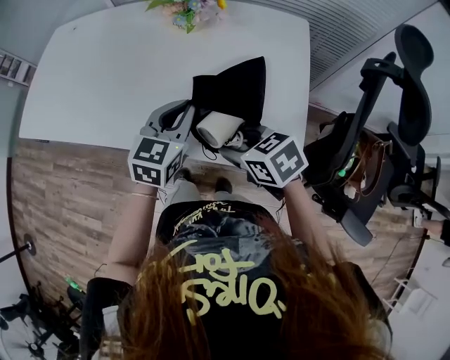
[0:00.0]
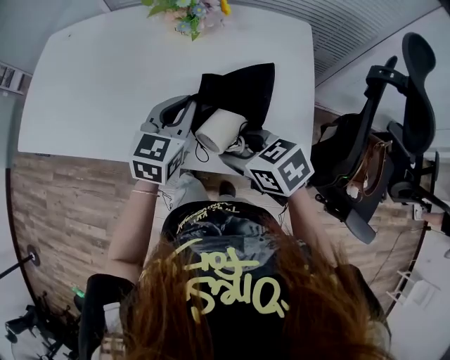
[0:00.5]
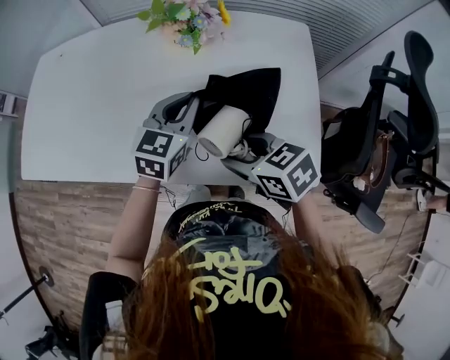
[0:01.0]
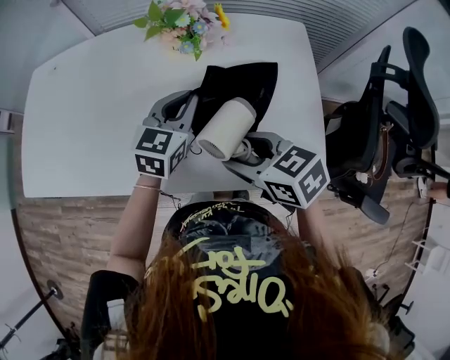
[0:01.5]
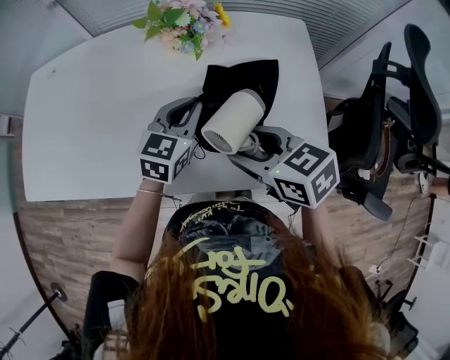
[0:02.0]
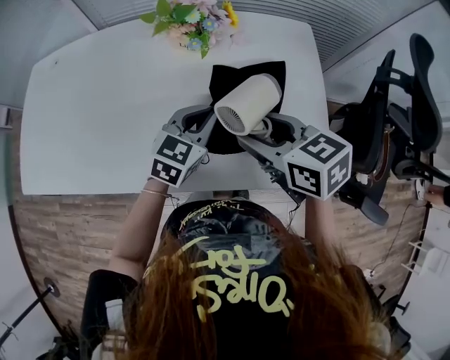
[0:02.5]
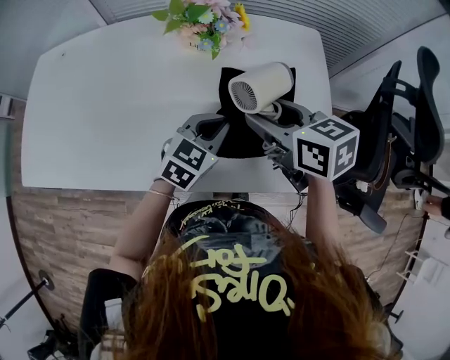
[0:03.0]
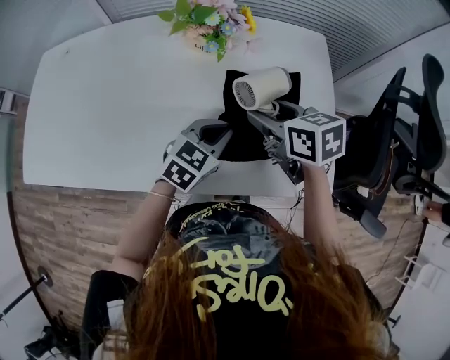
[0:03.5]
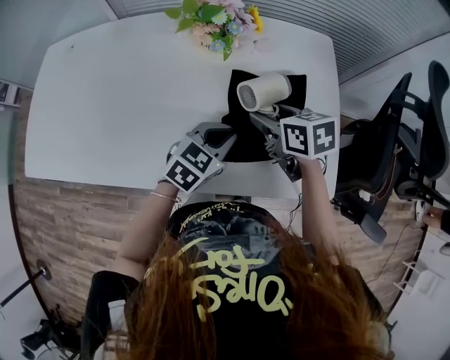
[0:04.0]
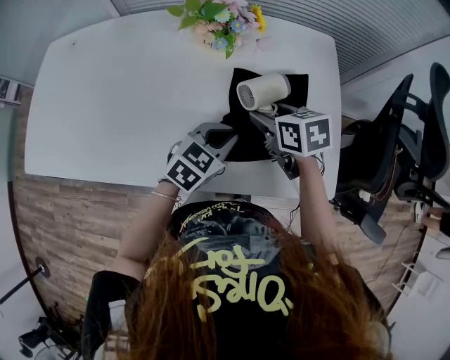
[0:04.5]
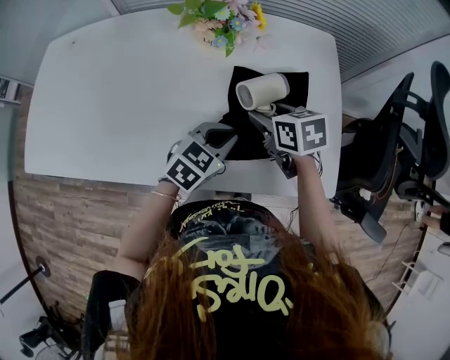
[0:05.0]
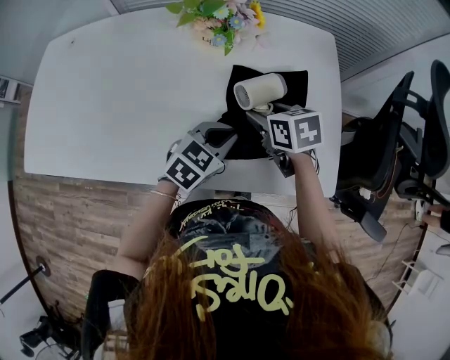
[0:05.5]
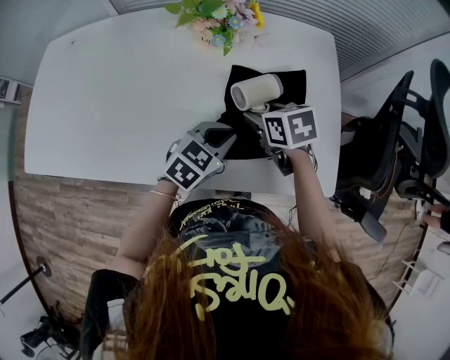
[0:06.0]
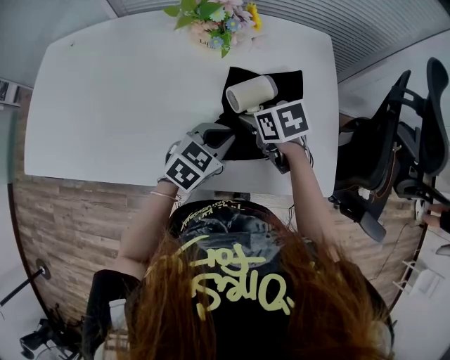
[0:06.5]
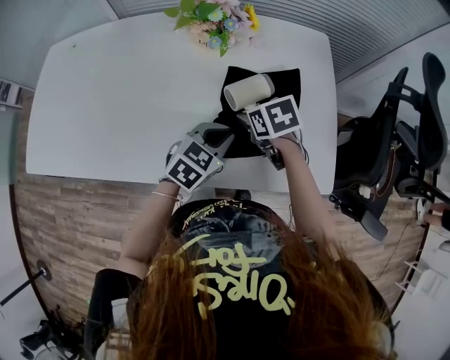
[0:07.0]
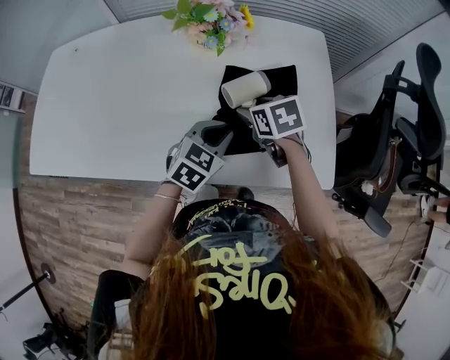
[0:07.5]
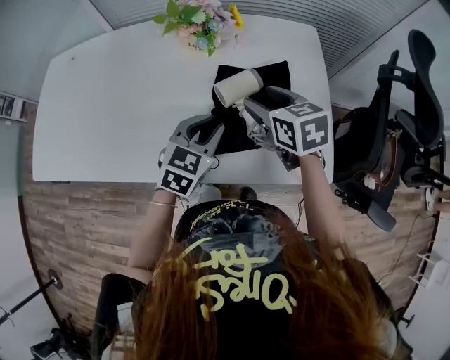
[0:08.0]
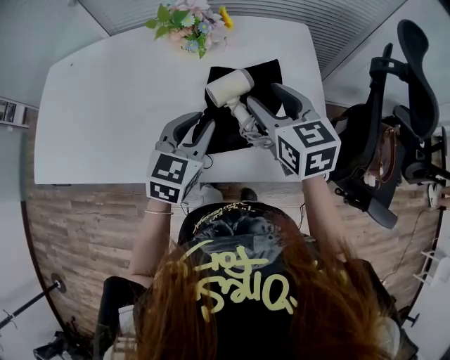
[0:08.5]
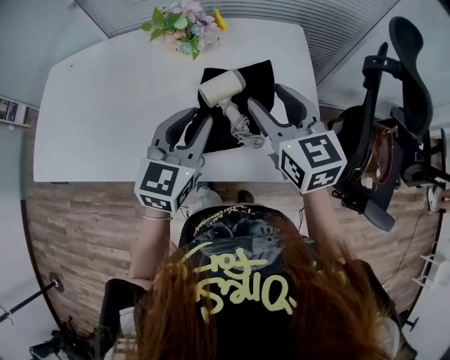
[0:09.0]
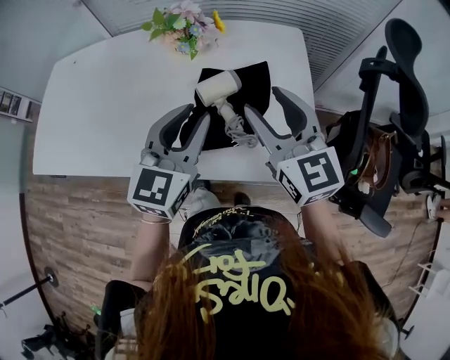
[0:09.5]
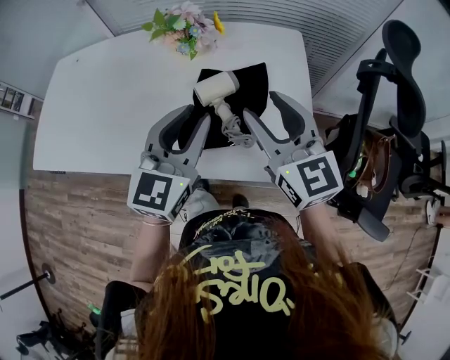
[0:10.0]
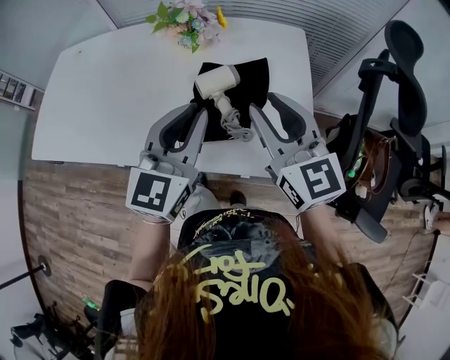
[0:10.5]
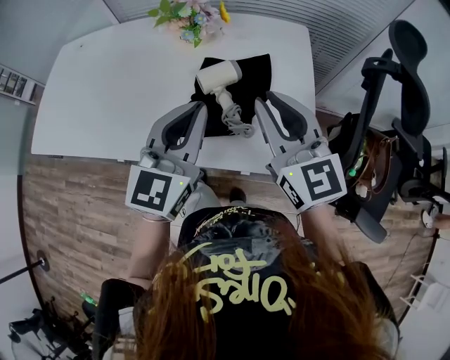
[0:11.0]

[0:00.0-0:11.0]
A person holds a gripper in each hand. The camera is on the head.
0:00.0 to 0:02.0: The left gripper heads forward, covering roughly 10 cm. Meanwhile the right gripper goes approximately 15 cm forward, upward and to the left.
0:02.0 to 0:03.5: The left gripper goes approximately 5 cm backward. Meanwhile the right gripper is displaced forward by about 10 cm.
0:03.5 to 0:05.5: The right gripper is displaced downward by approximately 5 cm.
0:05.5 to 0:07.5: The grippers stay close to where they were, moving slightly.
0:07.5 to 0:09.0: The left gripper shifts roughly 15 cm upward, and rotates roughly 30 degrees. The right gripper moves upward and to the right, roughly 20 cm, and tips its fingers upward by approximately 40 degrees.
0:09.0 to 0:11.0: The left gripper shifts approximately 5 cm upward and backward, and closes up; the right gripper moves backward, approximately 5 cm, and closes up.

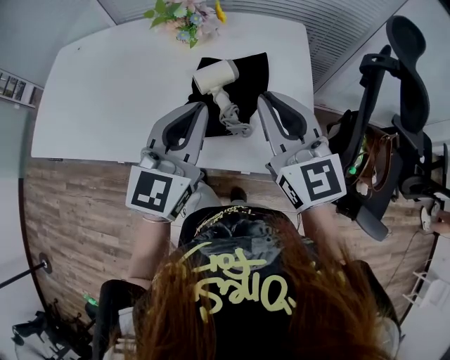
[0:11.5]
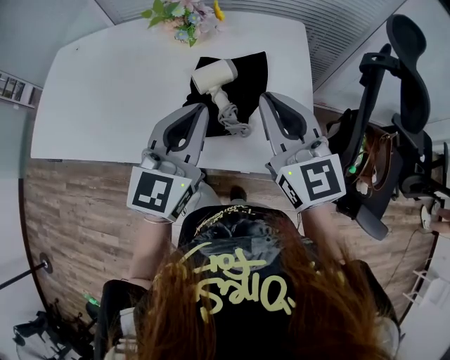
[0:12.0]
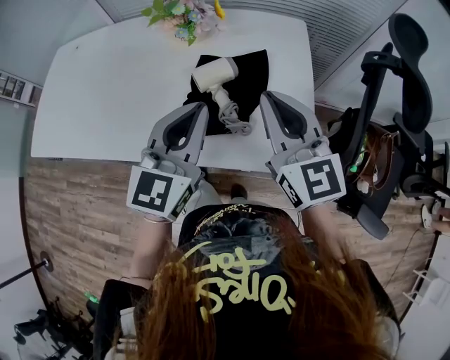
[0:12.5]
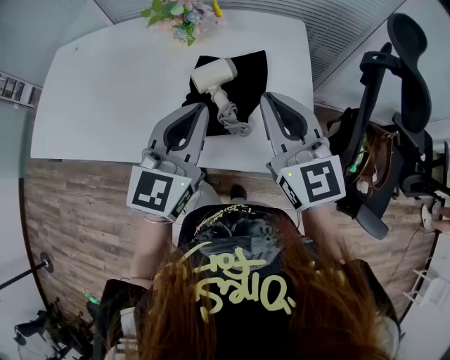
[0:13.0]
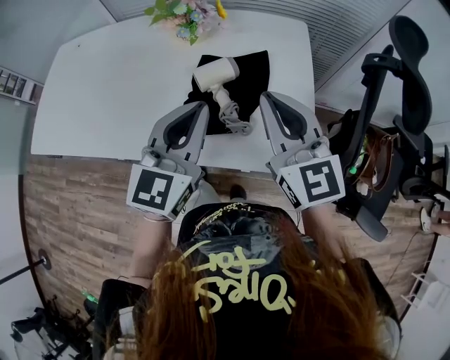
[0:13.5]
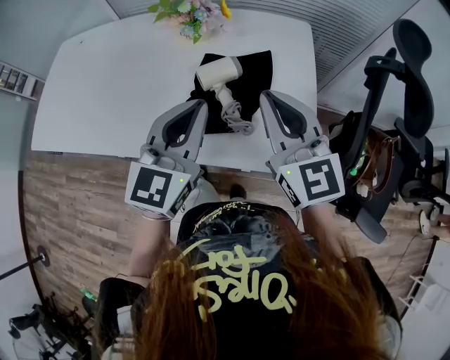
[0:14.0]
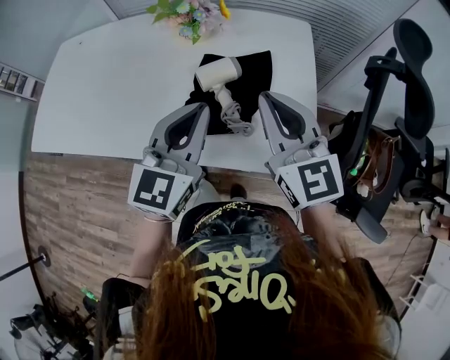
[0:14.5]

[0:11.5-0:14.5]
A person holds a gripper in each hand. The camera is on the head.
0:11.5 to 0:14.5: Both grippers stay put.

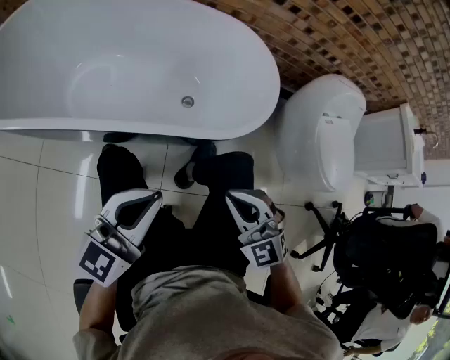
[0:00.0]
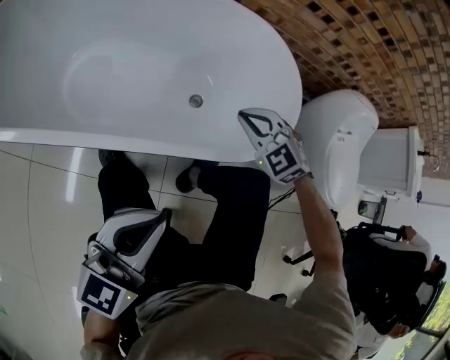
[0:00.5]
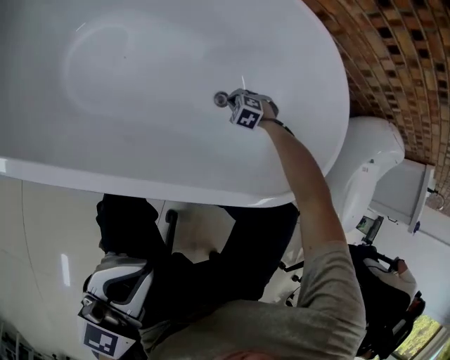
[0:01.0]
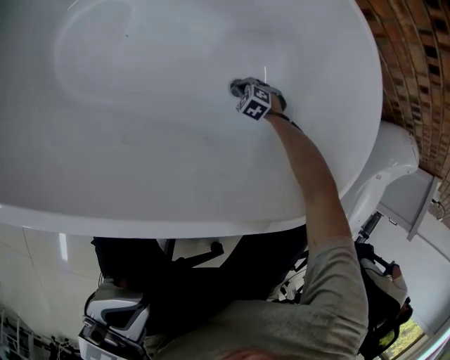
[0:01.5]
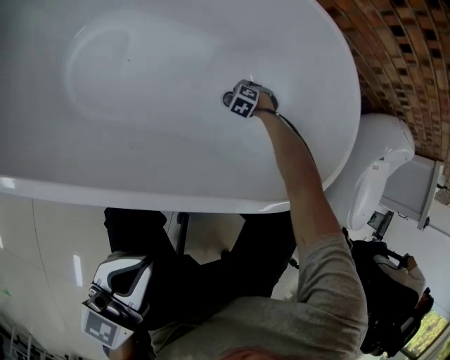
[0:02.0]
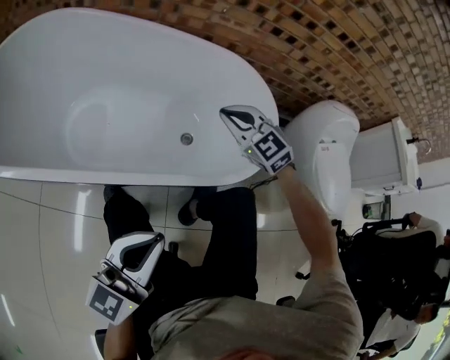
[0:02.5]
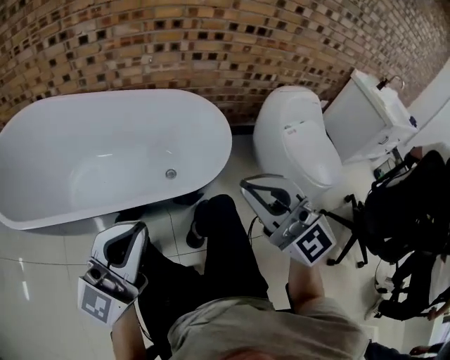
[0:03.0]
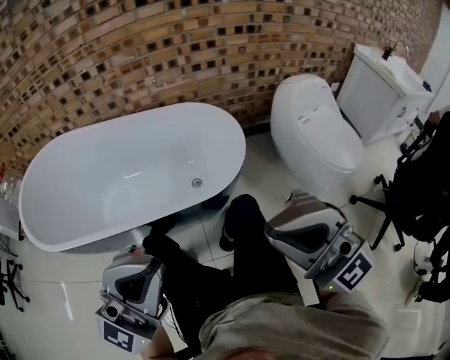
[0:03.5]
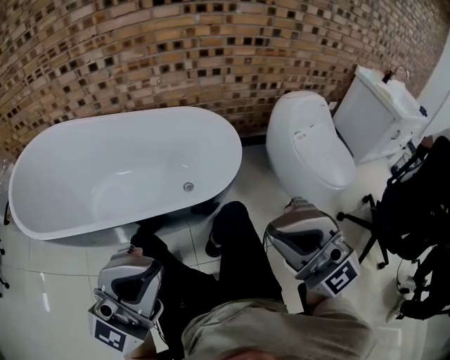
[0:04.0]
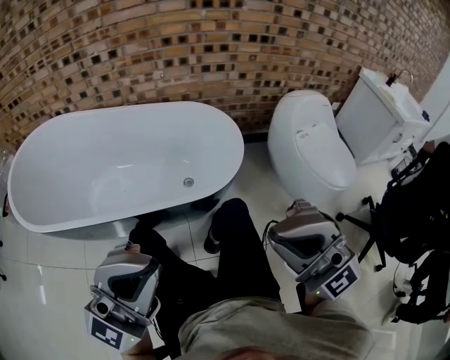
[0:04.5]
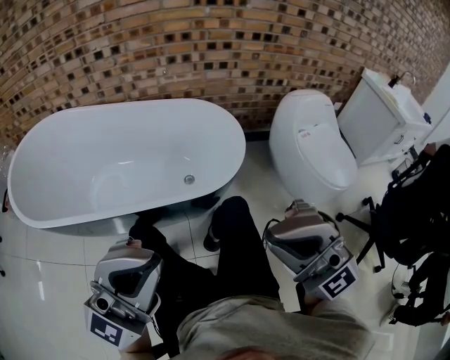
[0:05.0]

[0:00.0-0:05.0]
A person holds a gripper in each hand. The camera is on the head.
0:00.0 to 0:02.5: The right gripper reaches about 50 cm downward, then returns. The left gripper travels downward and back again, roughly 10 cm each way.
0:02.5 to 0:05.0: The right gripper travels backward and upward by roughly 50 cm, and points its fingers about 50 degrees further upward. The left gripper shifts about 30 cm upward and backward, and swivels roughly 40 degrees.

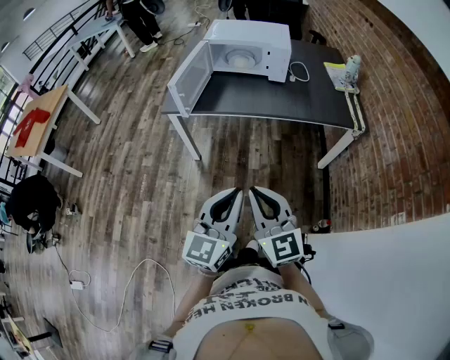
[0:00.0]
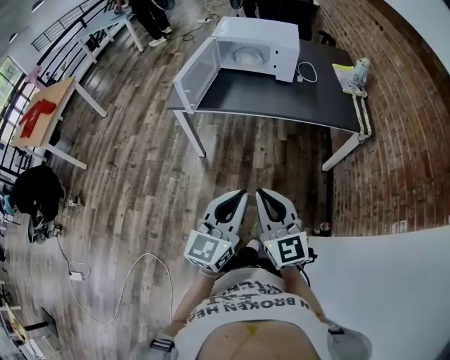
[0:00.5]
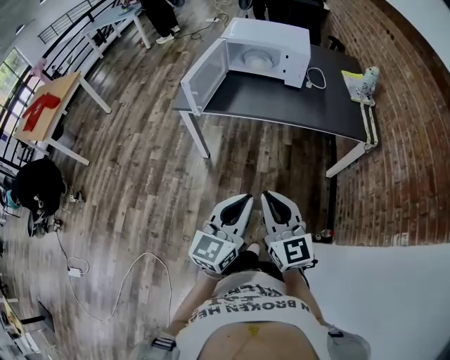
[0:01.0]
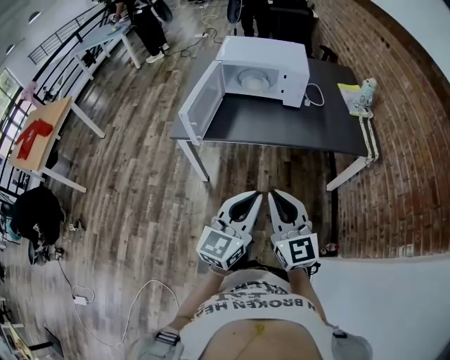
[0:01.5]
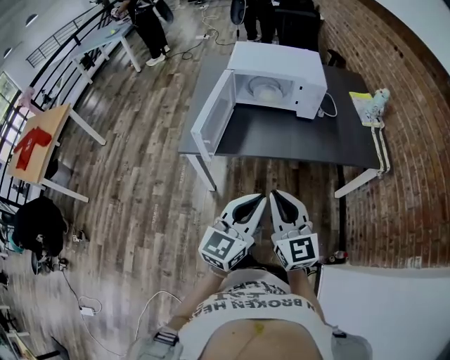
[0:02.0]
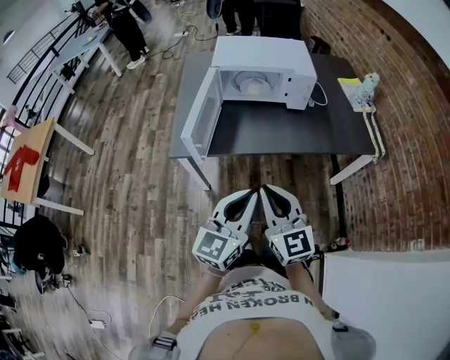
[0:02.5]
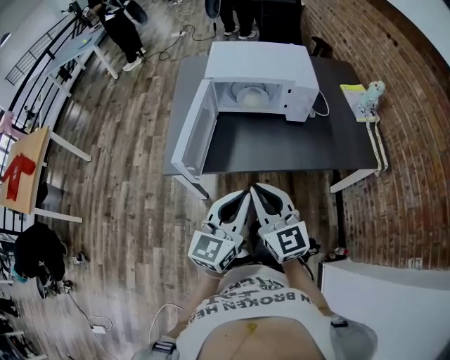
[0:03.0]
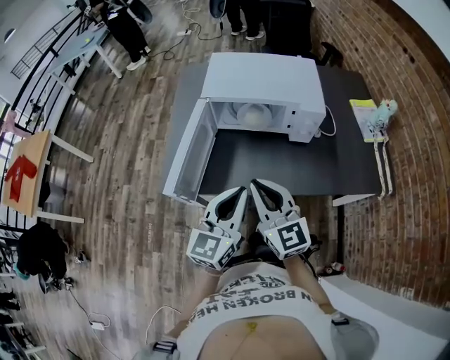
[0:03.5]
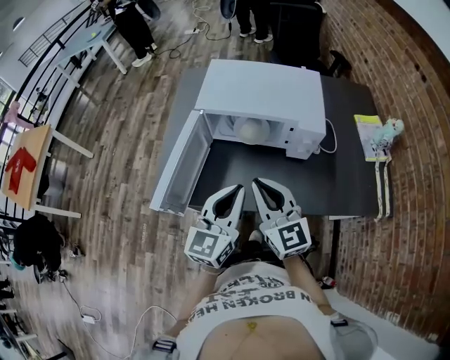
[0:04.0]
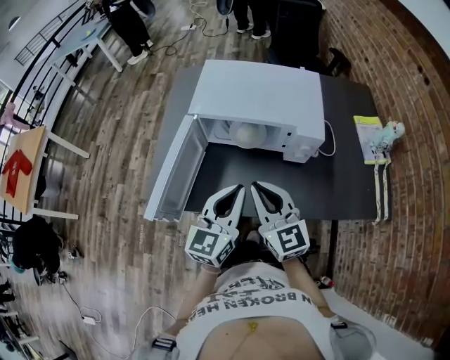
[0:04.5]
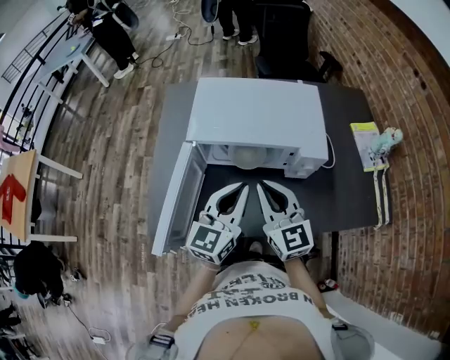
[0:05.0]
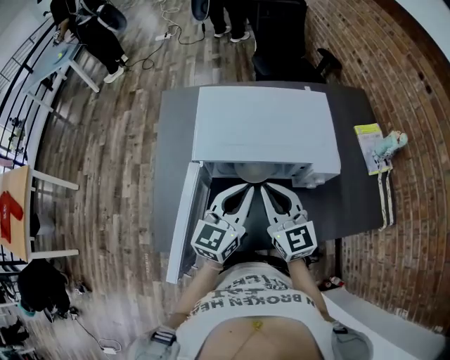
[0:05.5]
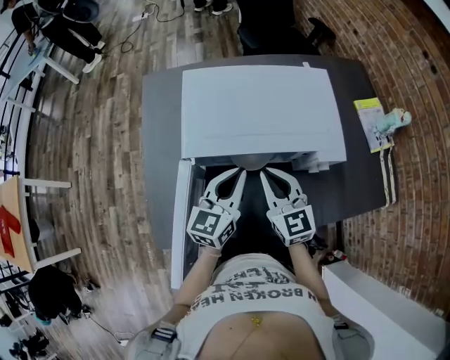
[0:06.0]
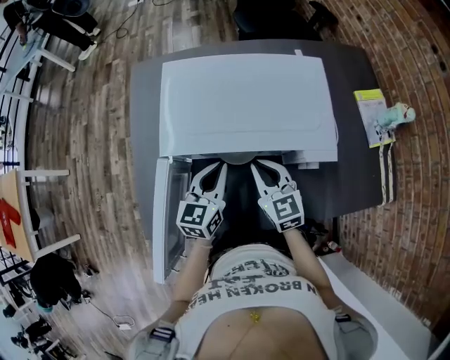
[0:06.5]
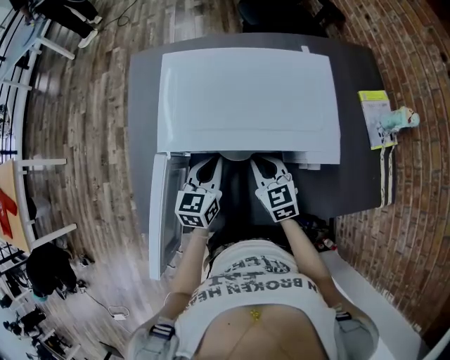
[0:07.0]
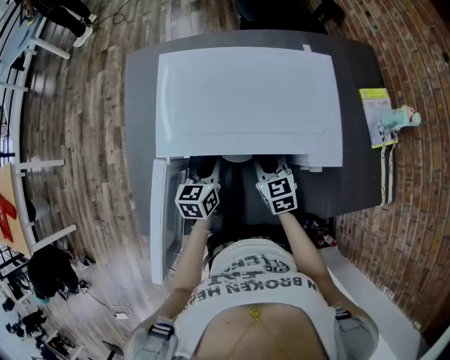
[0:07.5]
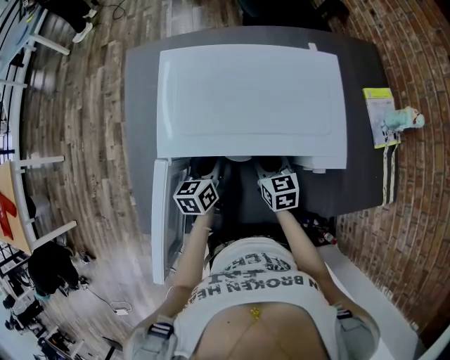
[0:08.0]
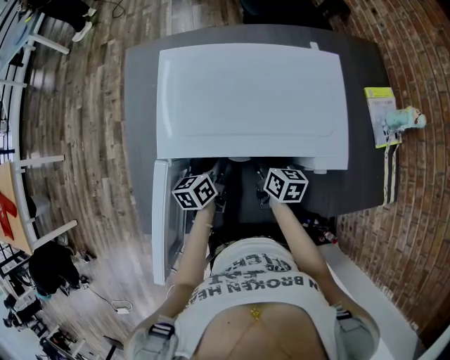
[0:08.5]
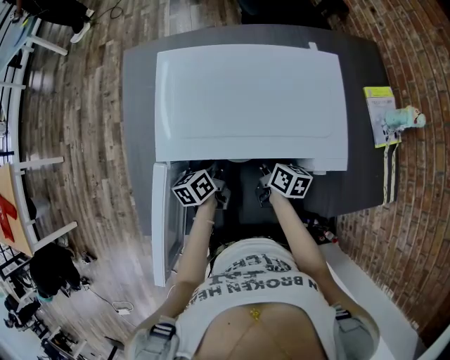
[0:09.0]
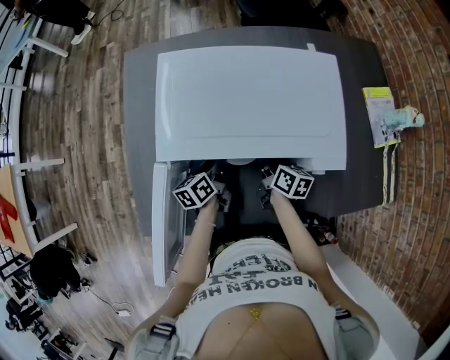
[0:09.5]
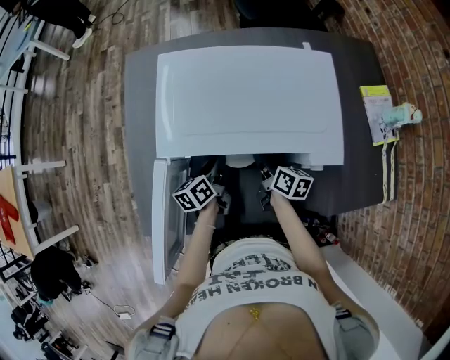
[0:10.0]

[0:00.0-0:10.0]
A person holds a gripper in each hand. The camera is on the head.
0:00.0 to 0:02.0: Both grippers travel together forward, some 20 cm.
0:02.0 to 0:04.0: Both grippers move forward, roughly 30 cm.
0:04.0 to 0:06.0: The right gripper moves forward and downward, about 25 cm; the left gripper travels forward by roughly 25 cm.
0:06.0 to 0:08.0: The two grippers go roughly 15 cm downward. The right gripper changes its angle by approximately 30 degrees, and opens up. Meanwhile the left gripper turns by about 30 degrees.
0:08.0 to 0:10.0: The left gripper changes its angle by some 20 degrees, while the right gripper changes its angle by roughly 40 degrees.
